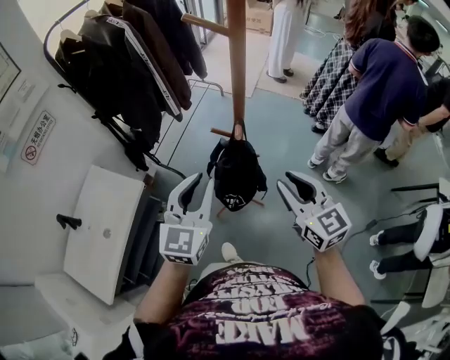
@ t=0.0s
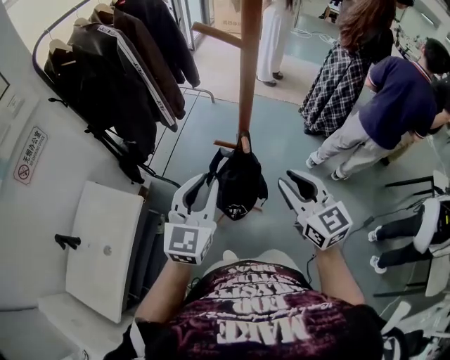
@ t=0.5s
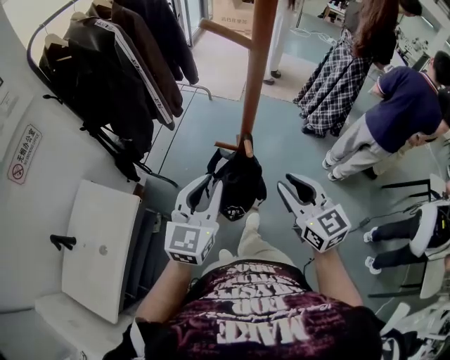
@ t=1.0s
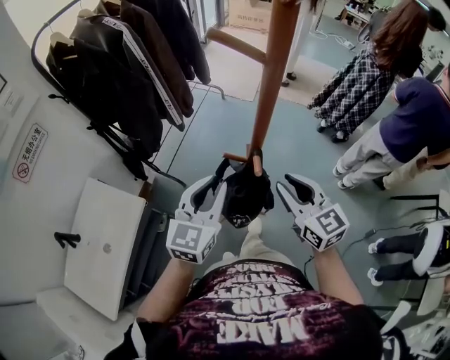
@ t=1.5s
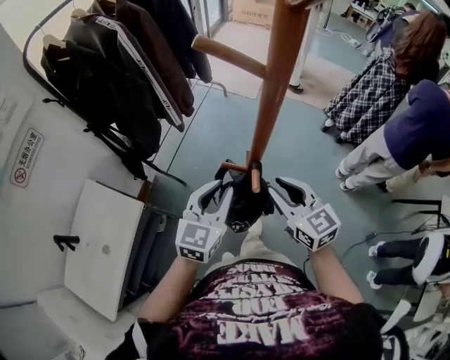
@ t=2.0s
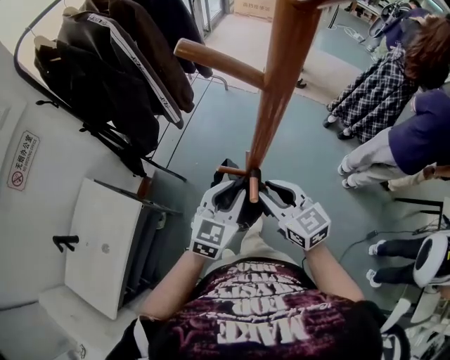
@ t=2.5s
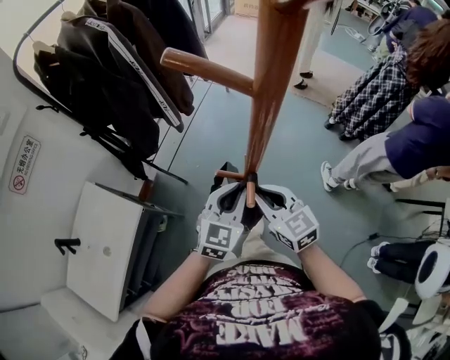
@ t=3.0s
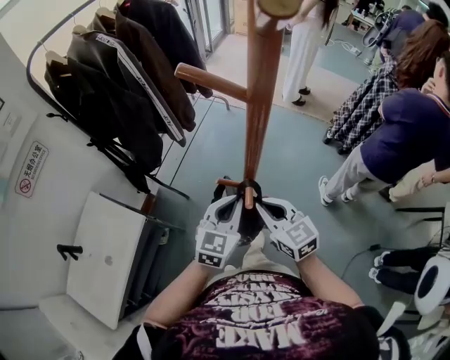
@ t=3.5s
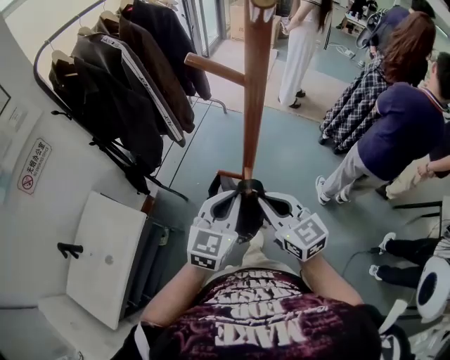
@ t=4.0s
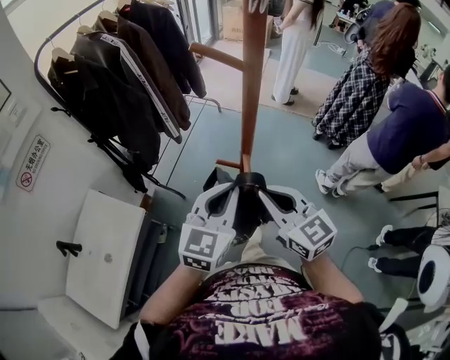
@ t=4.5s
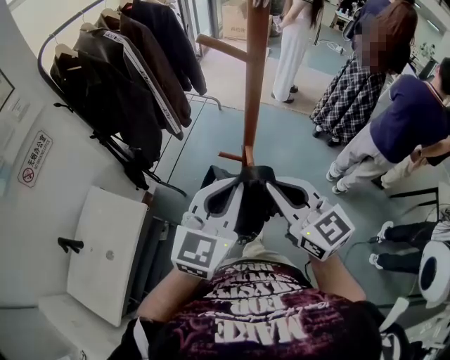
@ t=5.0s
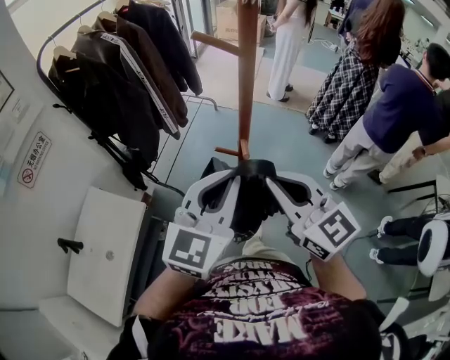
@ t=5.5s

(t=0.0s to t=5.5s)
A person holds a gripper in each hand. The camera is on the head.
t=0.0s - t=2.0s: Both grippers travel together forward and downward, roughly 15 cm.
t=2.0s - t=3.5s: The right gripper closes, while the left gripper changes place by some 5 cm.
t=3.5s - t=5.5s: The two grippers go about 25 cm upward and backward.

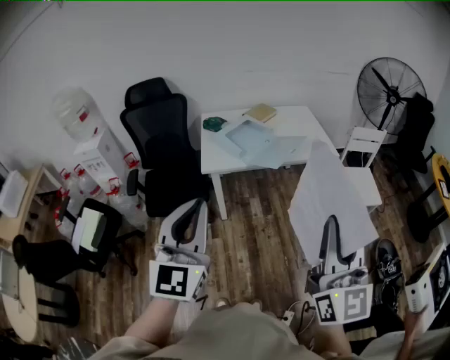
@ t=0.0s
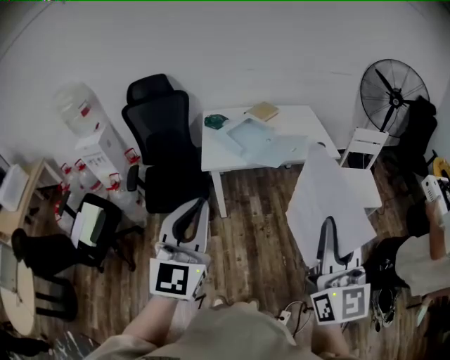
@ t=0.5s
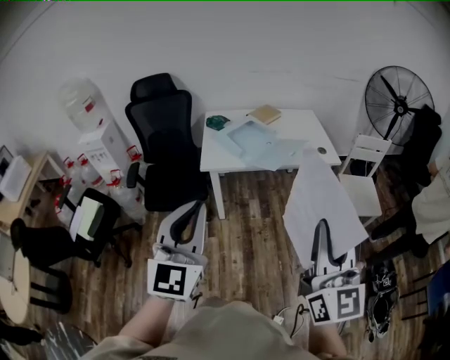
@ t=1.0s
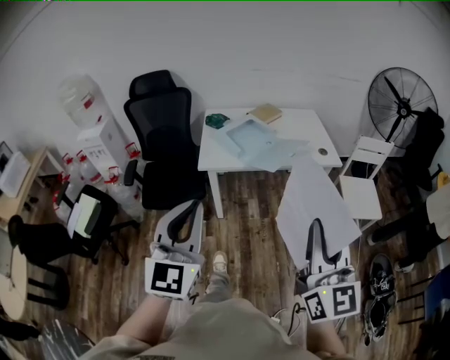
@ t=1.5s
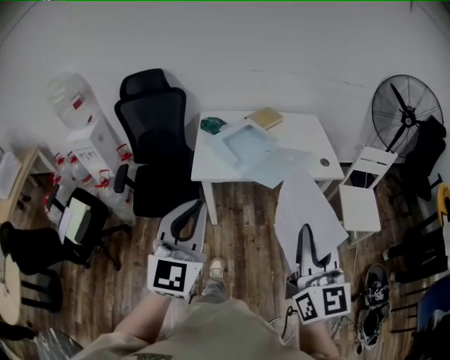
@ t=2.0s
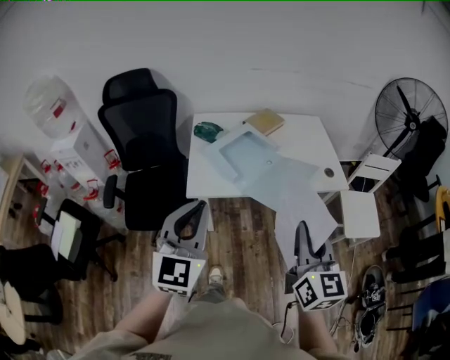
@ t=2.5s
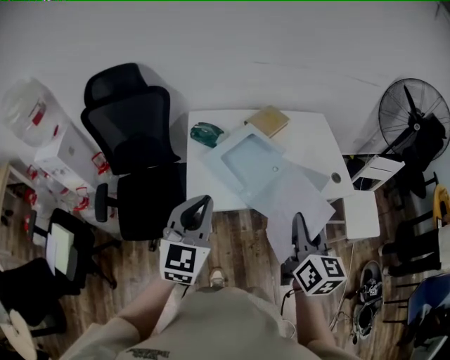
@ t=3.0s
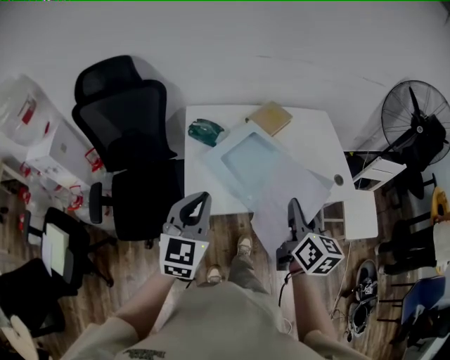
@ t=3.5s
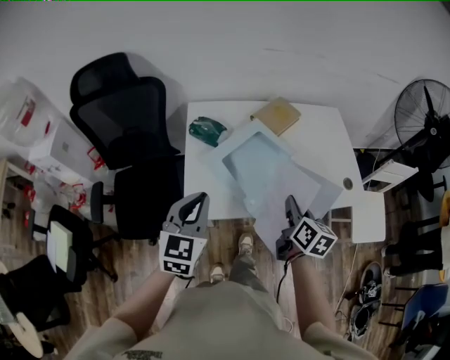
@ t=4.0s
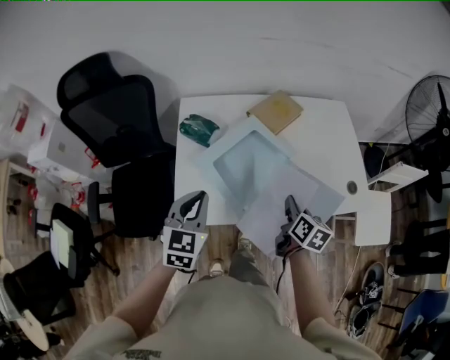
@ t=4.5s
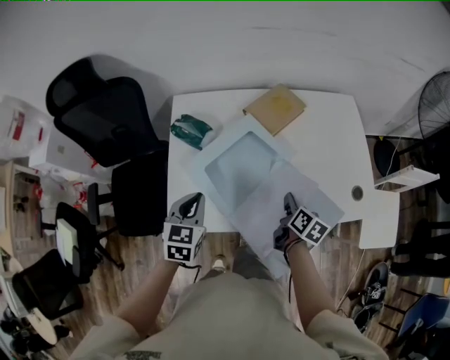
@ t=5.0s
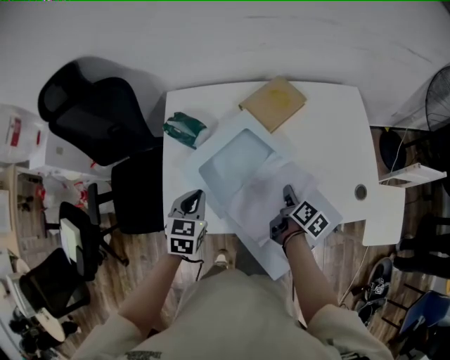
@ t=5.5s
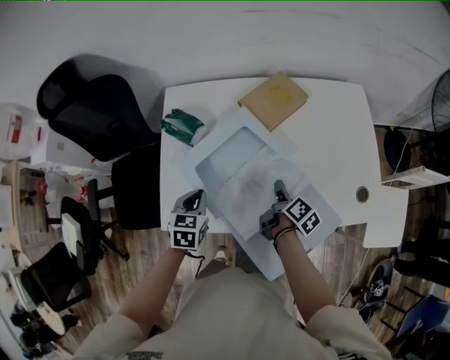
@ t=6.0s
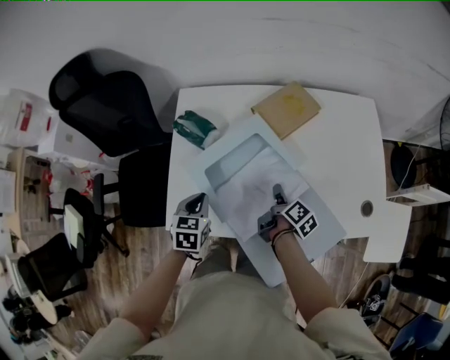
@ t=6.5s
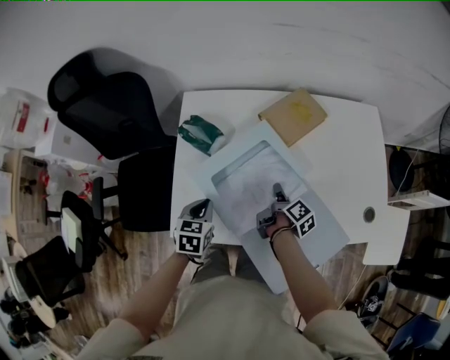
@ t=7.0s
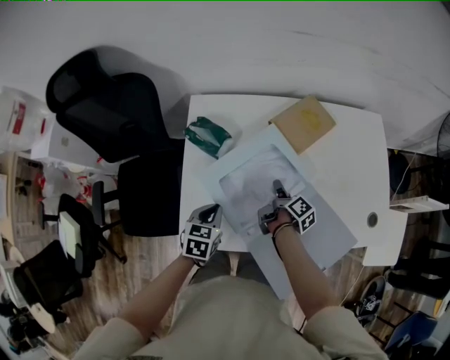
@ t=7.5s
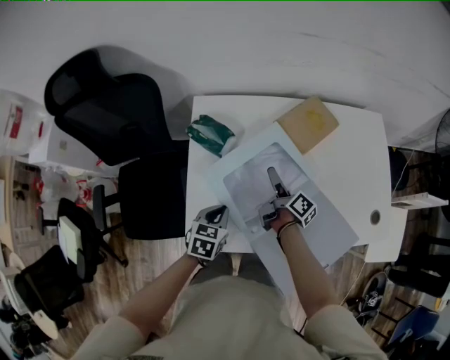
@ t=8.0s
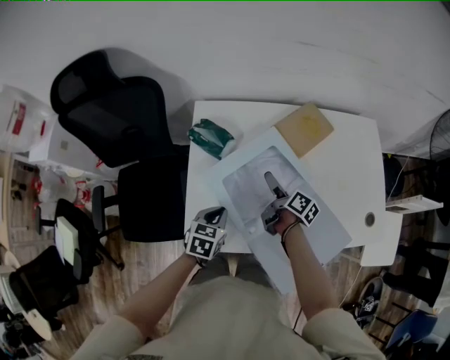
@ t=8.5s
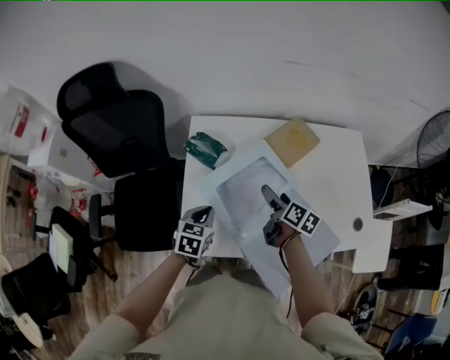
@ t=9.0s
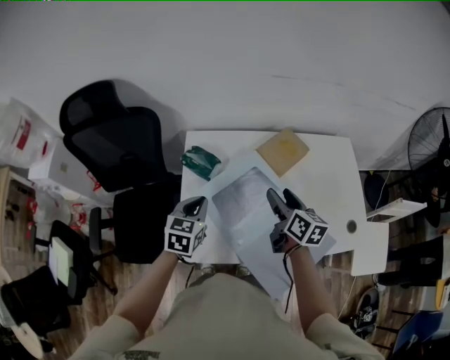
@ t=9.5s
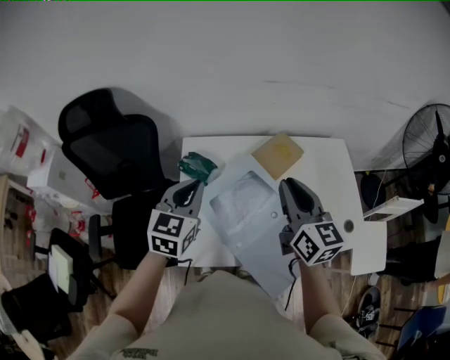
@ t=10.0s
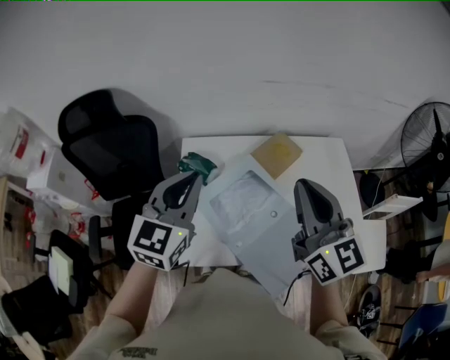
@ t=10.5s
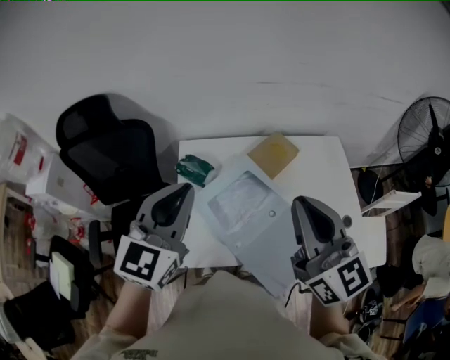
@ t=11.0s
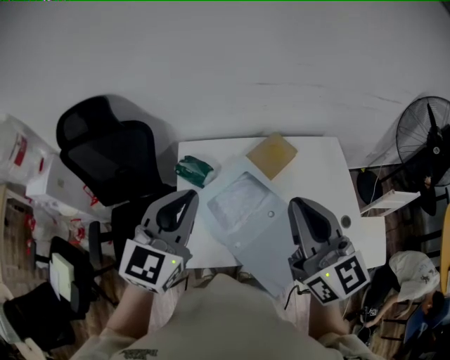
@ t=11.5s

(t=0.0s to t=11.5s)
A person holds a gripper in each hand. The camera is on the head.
t=0.0s - t=2.0s: The left gripper shifts roughly 15 cm forward. The right gripper moves forward and downward, some 15 cm.
t=2.0s - t=4.0s: The two grippers go some 50 cm forward and downward. The right gripper angles its fingers downward, by roughly 30 degrees. The left gripper turns by some 20 degrees.
t=4.0s - t=6.0s: Both grippers move downward and forward, approximately 25 cm. The left gripper swivels some 30 degrees. The right gripper swivels about 40 degrees.
t=6.0s - t=7.5s: The right gripper moves to the left and forward, about 10 cm.
t=7.5s - t=9.5s: The right gripper goes about 20 cm upward, twists about 50 degrees counterclockwise, seen from behind, and opens its fingers. The left gripper is displaced upward by some 15 cm.
t=9.5s - t=11.5s: The right gripper moves upward and backward, about 30 cm, rotates about 40 degrees, and closes, while the left gripper goes some 25 cm upward, and rotates approximately 30 degrees.

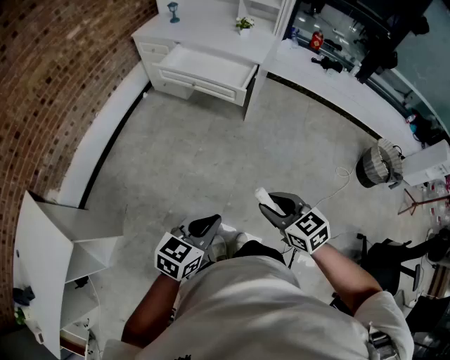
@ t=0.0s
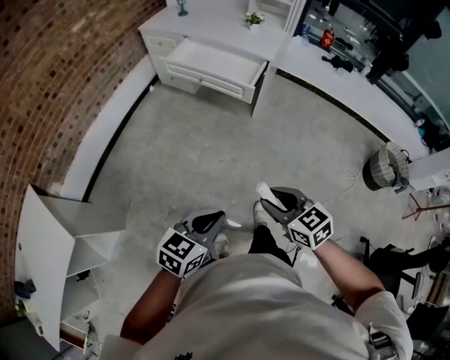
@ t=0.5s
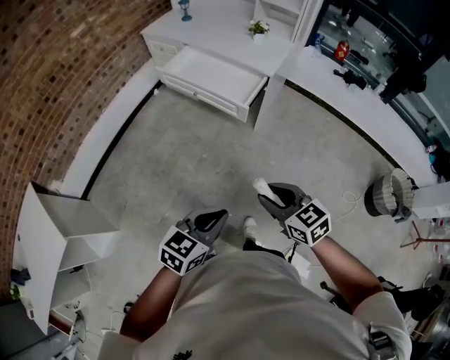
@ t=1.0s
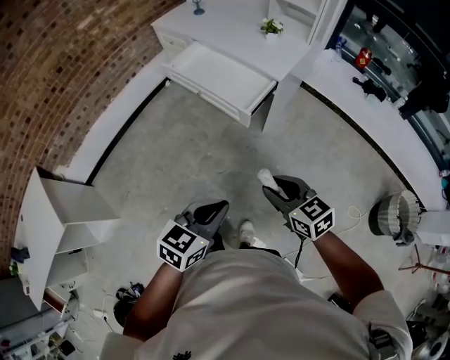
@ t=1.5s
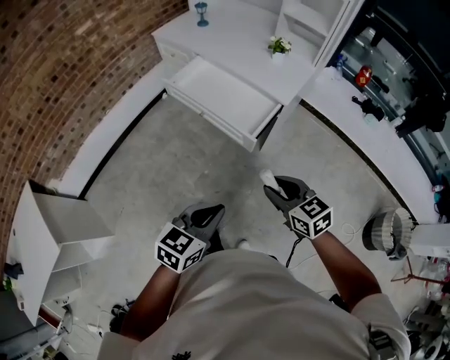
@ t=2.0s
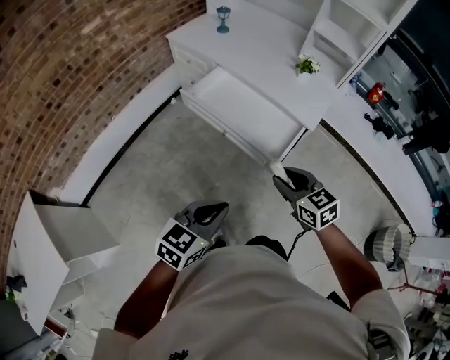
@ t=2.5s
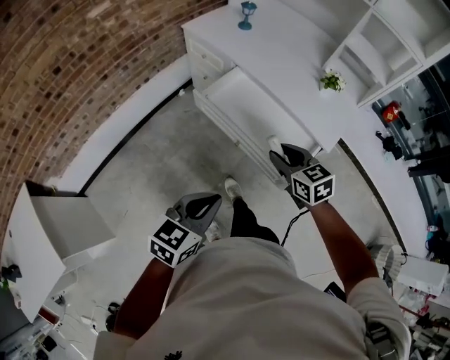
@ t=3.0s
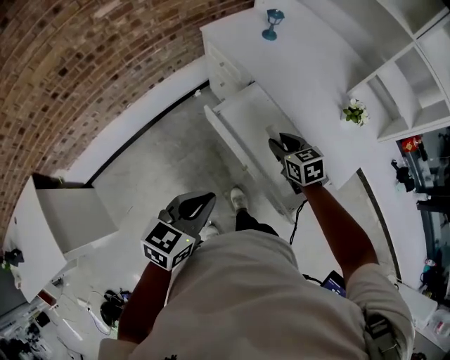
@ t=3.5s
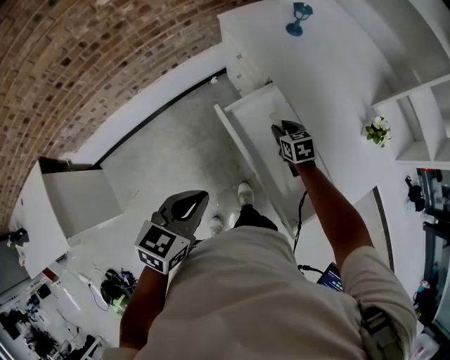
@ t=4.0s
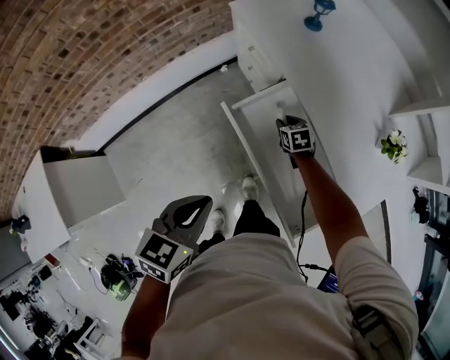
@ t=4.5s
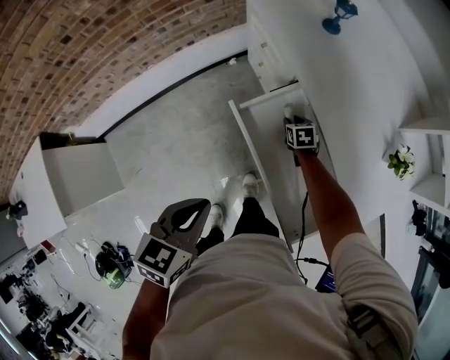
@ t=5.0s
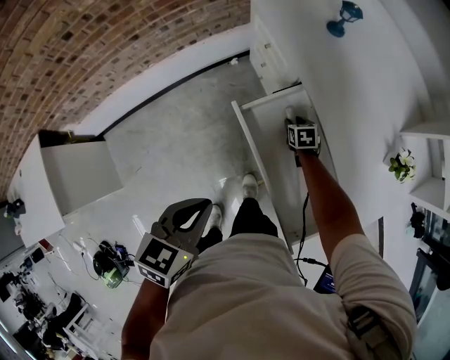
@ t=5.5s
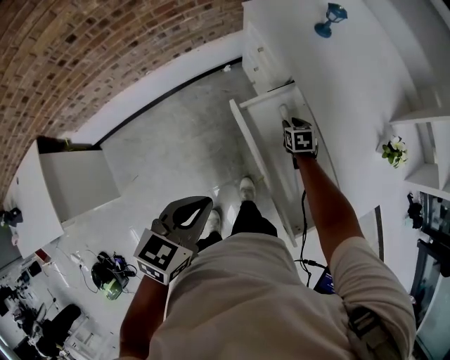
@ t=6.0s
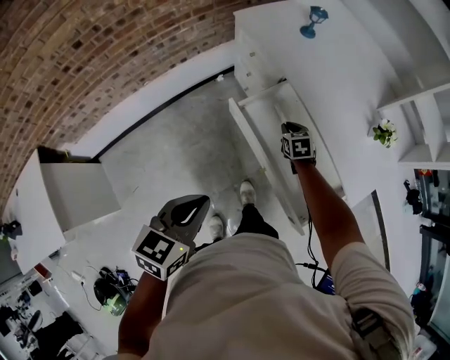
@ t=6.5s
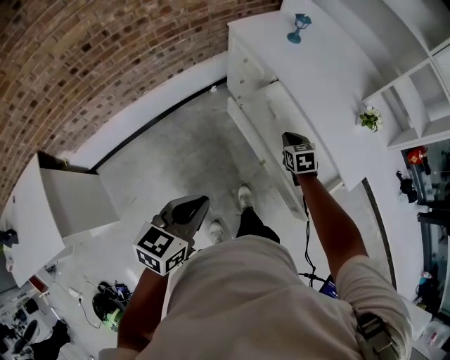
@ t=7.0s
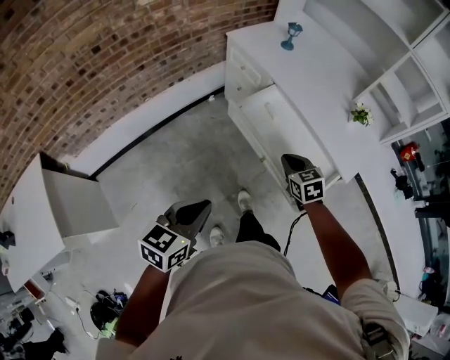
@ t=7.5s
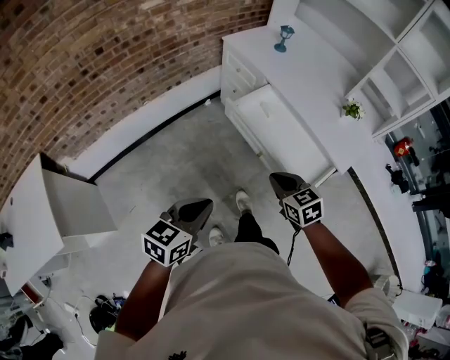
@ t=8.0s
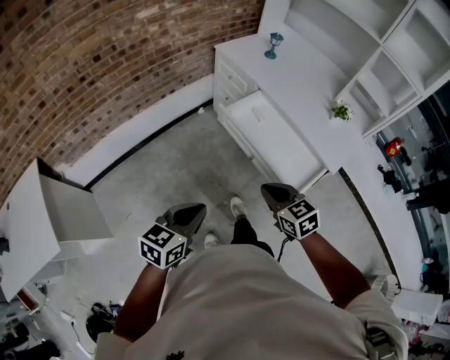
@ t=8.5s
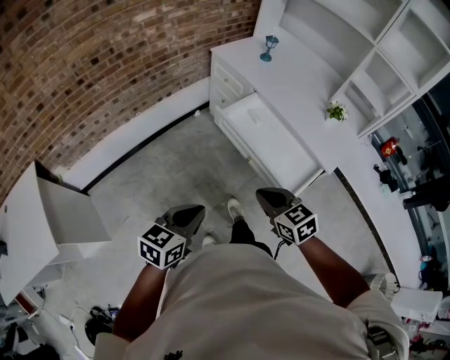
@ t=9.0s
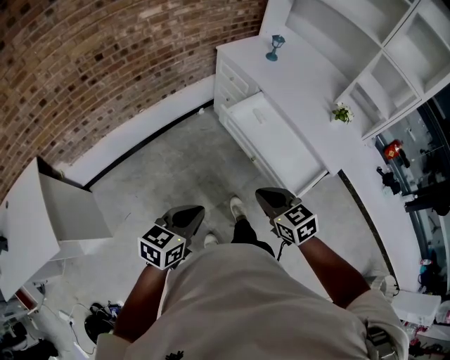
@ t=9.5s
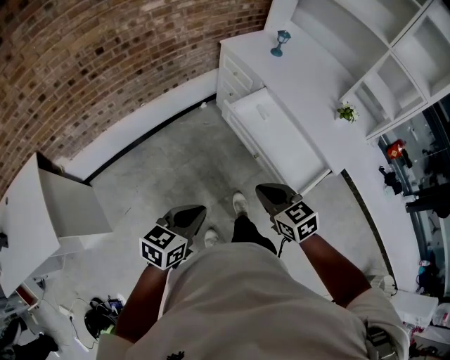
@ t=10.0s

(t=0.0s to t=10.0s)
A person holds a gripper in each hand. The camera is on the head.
t=0.0s - t=2.0s: Both grippers travel together forward, about 35 cm.
t=2.0s - t=4.0s: The pair of grippers is taken forward, some 60 cm. The left gripper changes its angle by some 30 degrees.
t=4.0s - t=6.0s: The right gripper goes roughly 10 cm downward.
t=6.0s - t=8.0s: The right gripper heads backward and upward, covering roughly 50 cm, rotates approximately 20 degrees, and closes its fingers; the left gripper travels backward by approximately 25 cm.
t=8.0s - t=10.0s: The right gripper goes about 5 cm to the left and backward.
